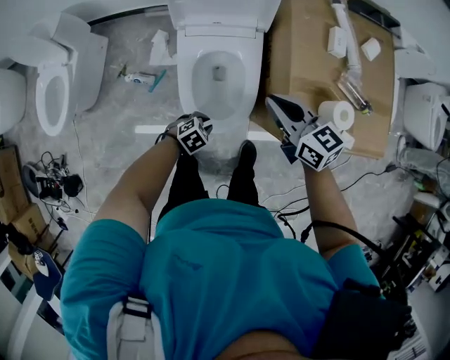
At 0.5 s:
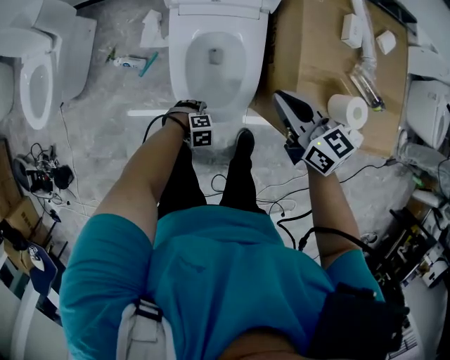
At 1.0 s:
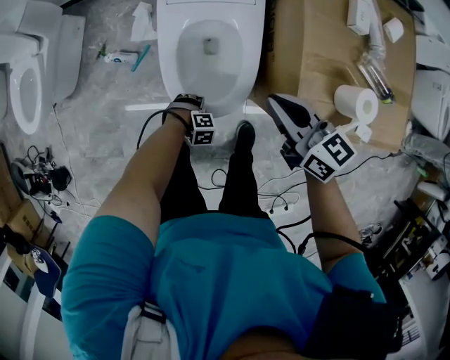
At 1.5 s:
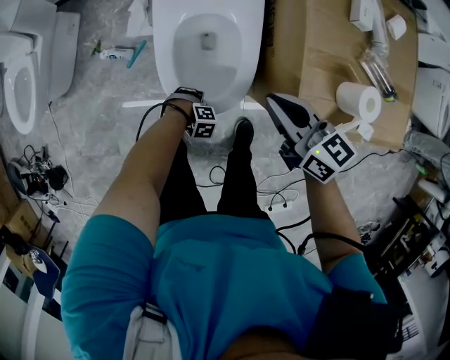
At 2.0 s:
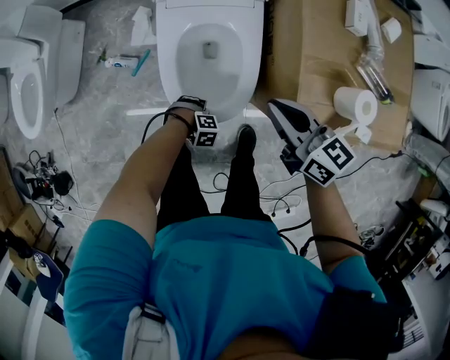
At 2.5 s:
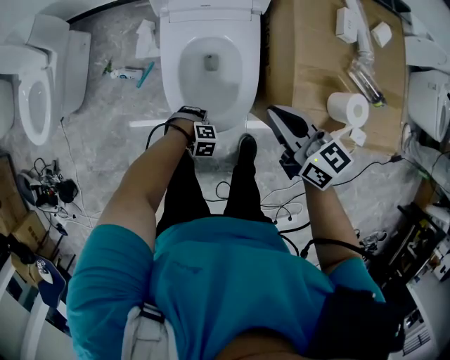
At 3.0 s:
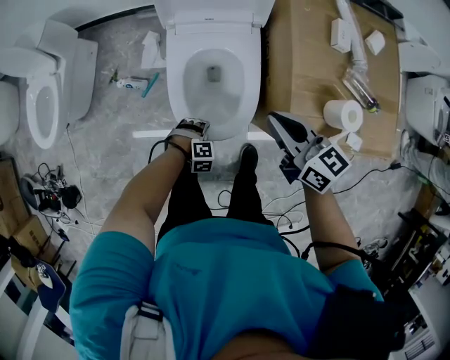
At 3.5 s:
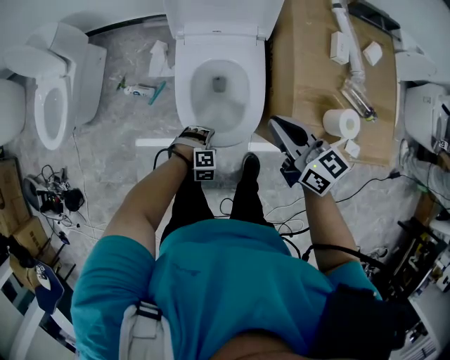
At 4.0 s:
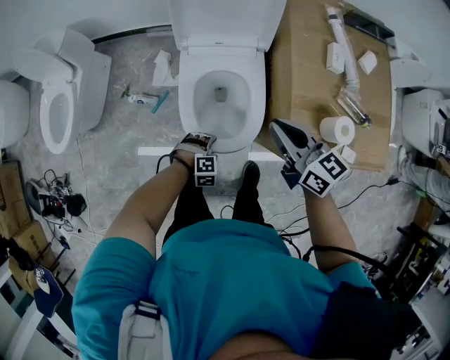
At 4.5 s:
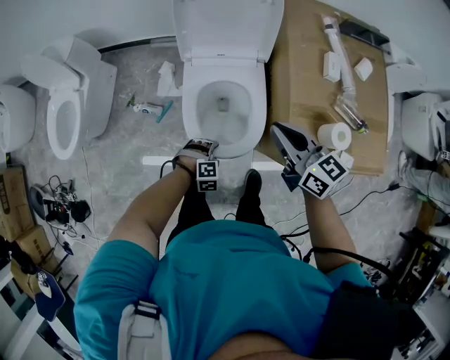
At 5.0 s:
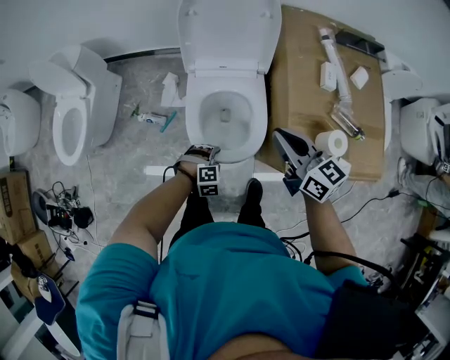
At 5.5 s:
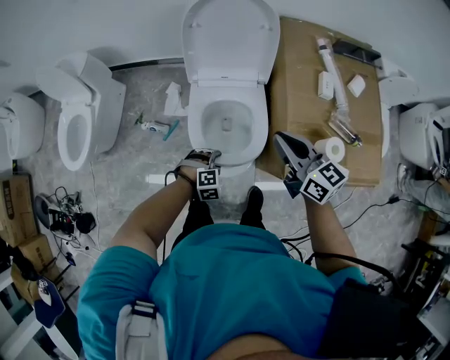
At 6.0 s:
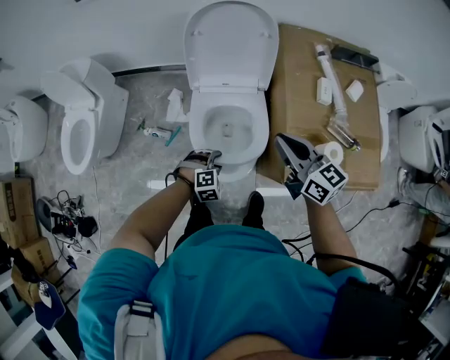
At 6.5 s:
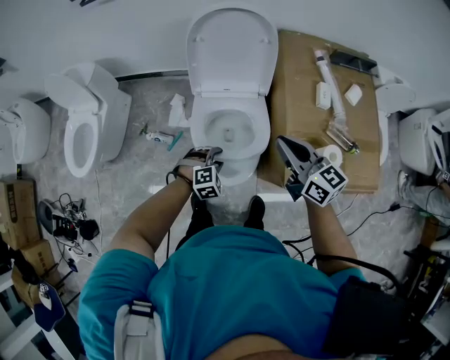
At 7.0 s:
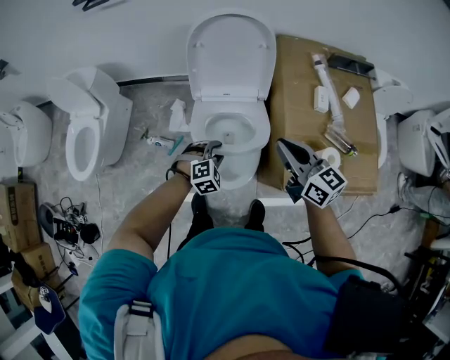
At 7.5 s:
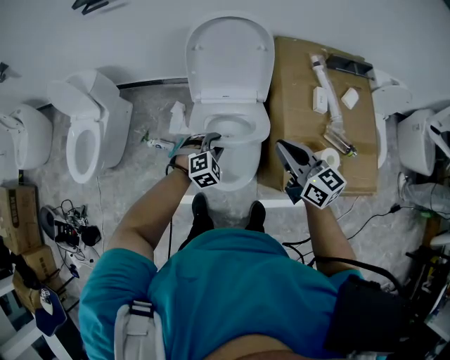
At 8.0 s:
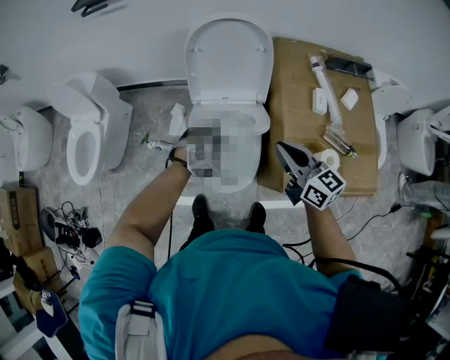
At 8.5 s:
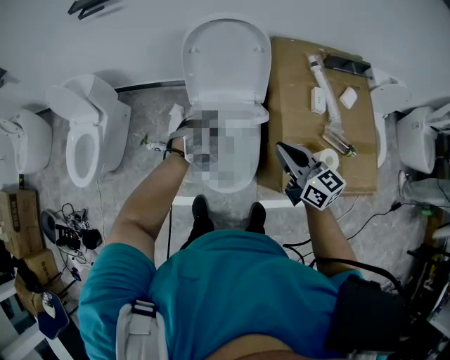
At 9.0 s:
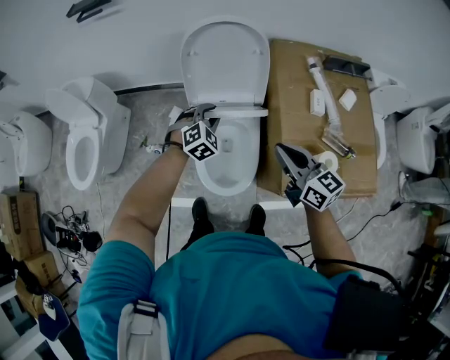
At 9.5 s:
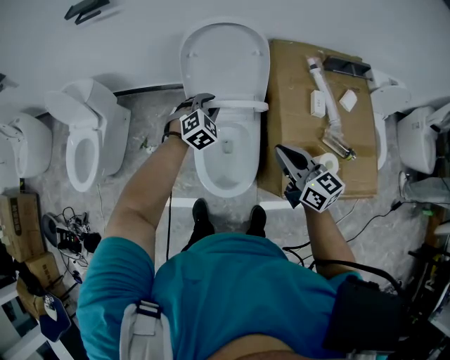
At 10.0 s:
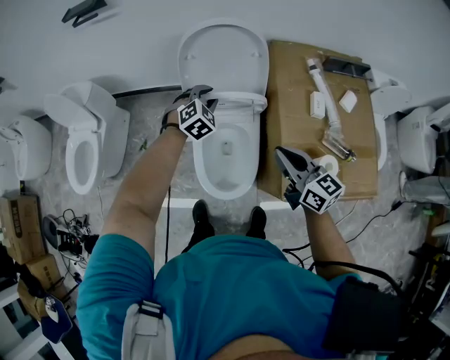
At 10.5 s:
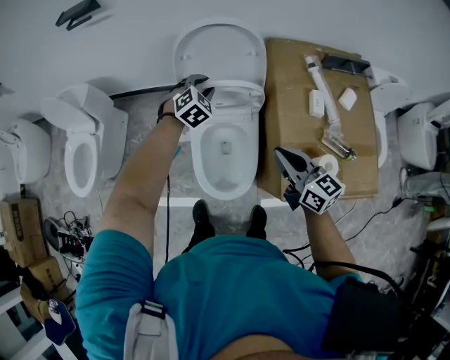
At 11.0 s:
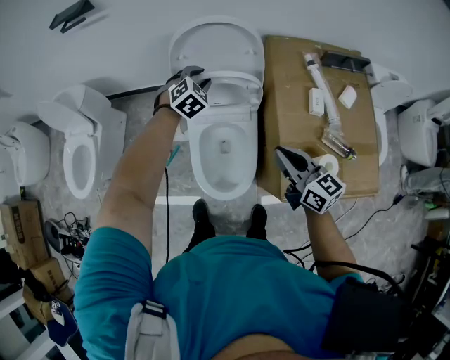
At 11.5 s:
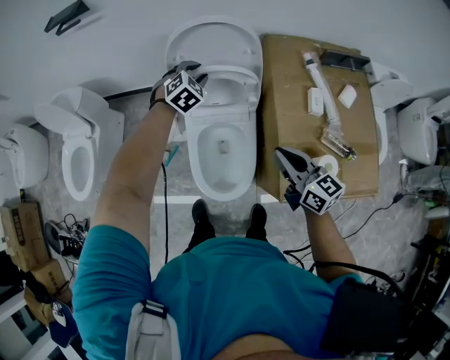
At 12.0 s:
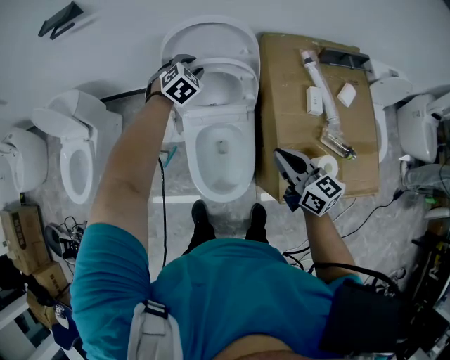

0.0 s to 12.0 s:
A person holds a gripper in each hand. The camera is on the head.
0.0 to 2.0 s: The left gripper travels downward by approximately 15 cm, swivels some 50 degrees, and opens its fingers. The right gripper shifts approximately 10 cm downward.
2.0 to 4.0 s: Both grippers move upward, roughly 10 cm. The left gripper rotates roughly 20 degrees.
4.0 to 6.0 s: The left gripper moves upward and forward, about 15 cm; the right gripper heads upward, covering approximately 10 cm.
6.0 to 8.0 s: The left gripper heads forward and upward, covering roughly 15 cm.
8.0 to 10.0 s: The left gripper travels forward by roughly 15 cm.
10.0 to 12.0 s: The left gripper shifts about 10 cm forward.

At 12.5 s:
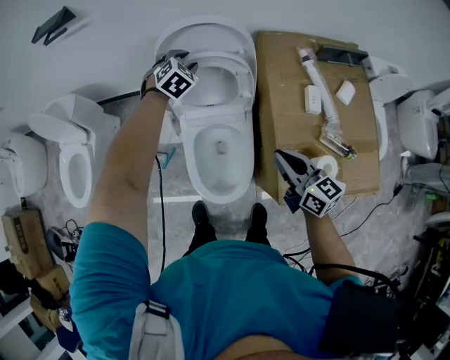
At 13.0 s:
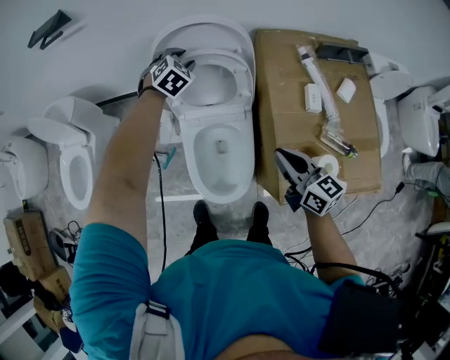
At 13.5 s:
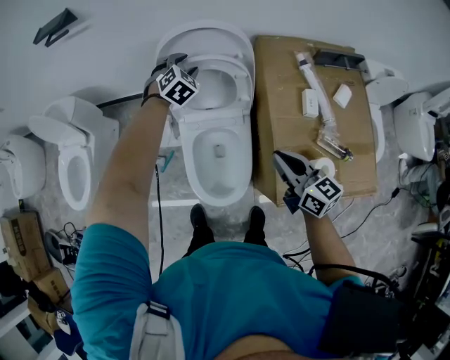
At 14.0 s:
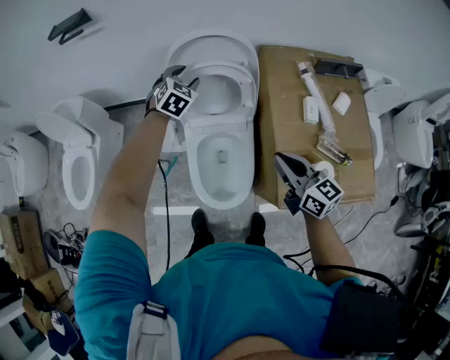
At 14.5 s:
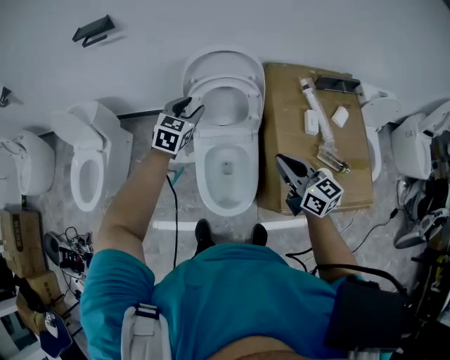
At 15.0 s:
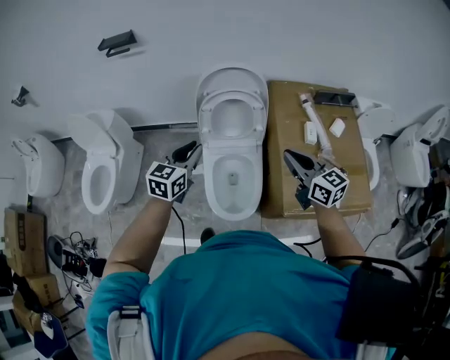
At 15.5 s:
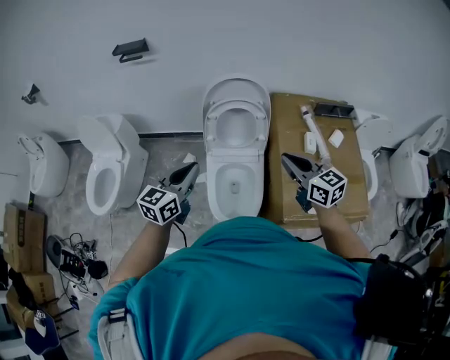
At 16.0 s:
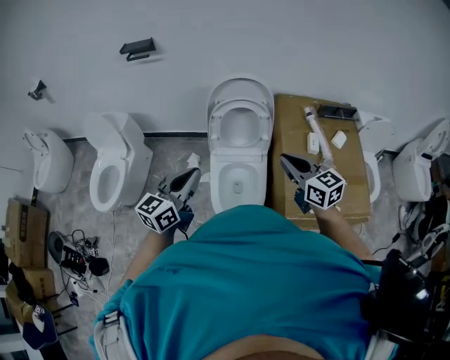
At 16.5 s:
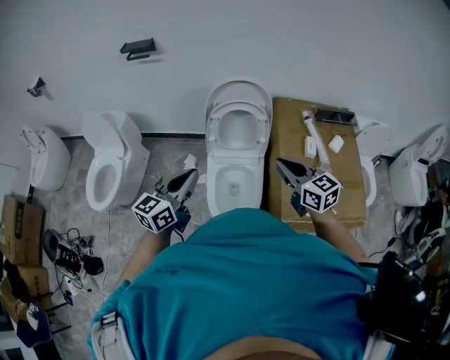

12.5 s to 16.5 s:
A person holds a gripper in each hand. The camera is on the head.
12.5 to 14.5 s: The right gripper heads upward, covering roughly 10 cm. Meanwhile the left gripper moves backward, upward and to the left, roughly 20 cm, and swivels roughly 30 degrees.
14.5 to 16.5 s: The left gripper goes about 30 cm backward and upward, rotates roughly 40 degrees, and closes; the right gripper goes approximately 10 cm upward.

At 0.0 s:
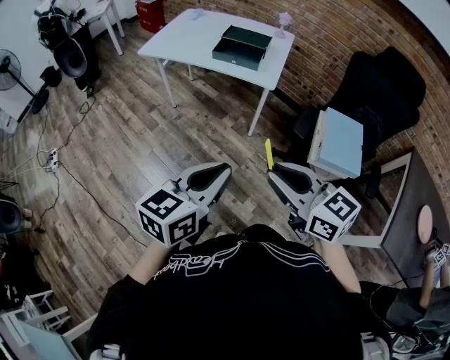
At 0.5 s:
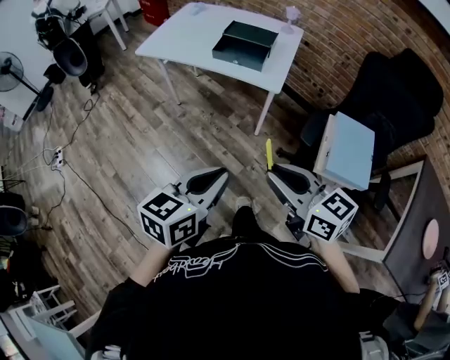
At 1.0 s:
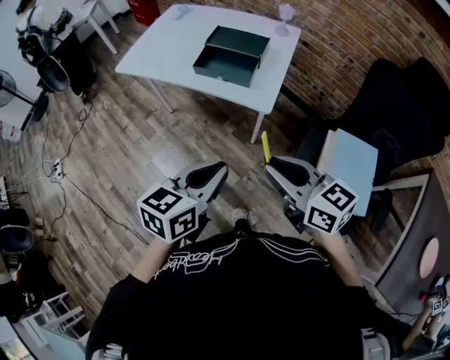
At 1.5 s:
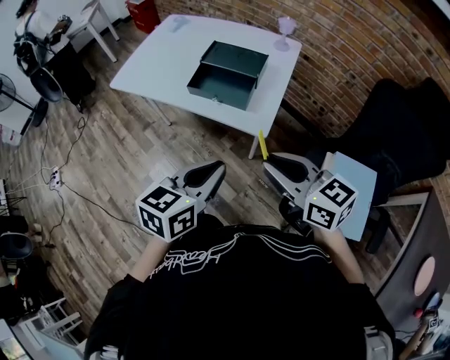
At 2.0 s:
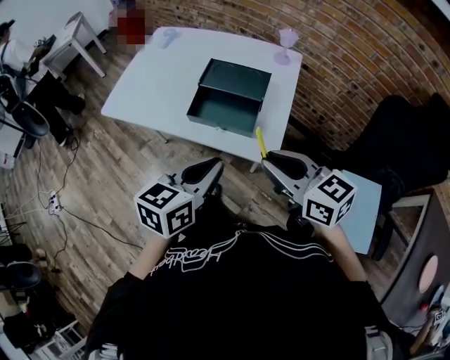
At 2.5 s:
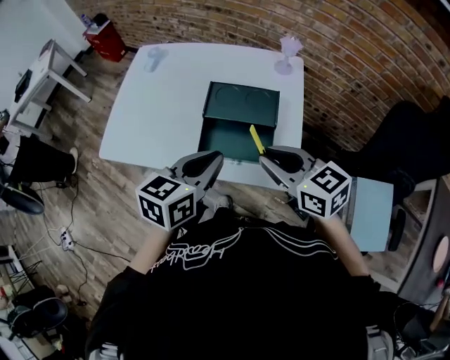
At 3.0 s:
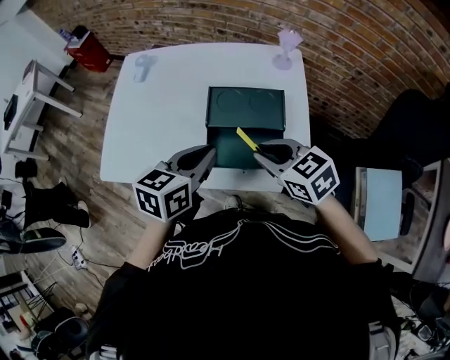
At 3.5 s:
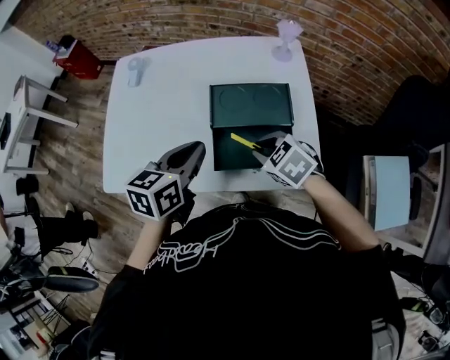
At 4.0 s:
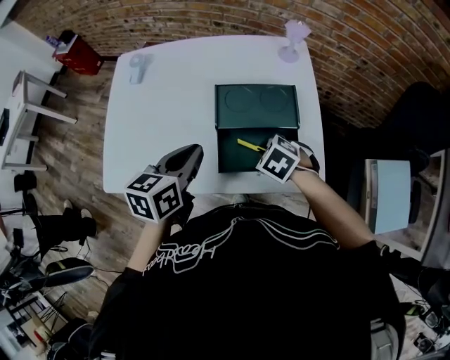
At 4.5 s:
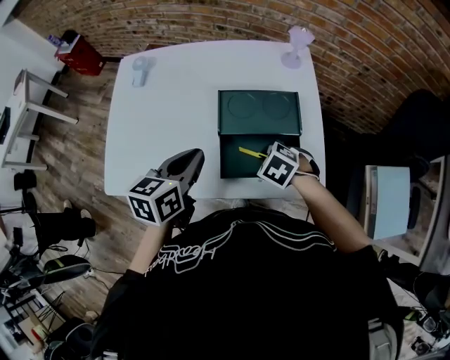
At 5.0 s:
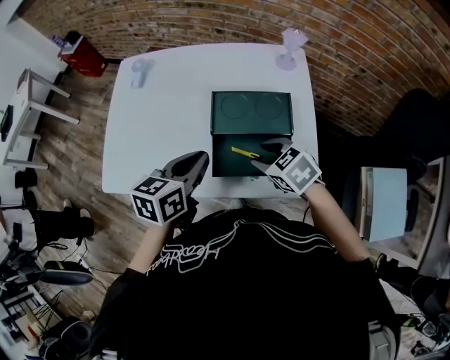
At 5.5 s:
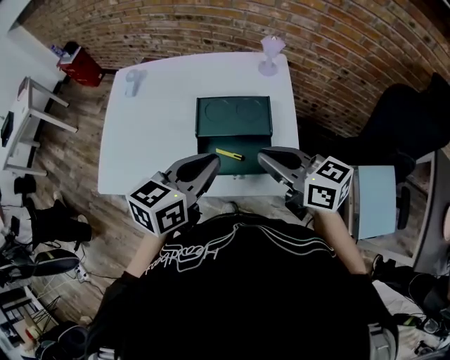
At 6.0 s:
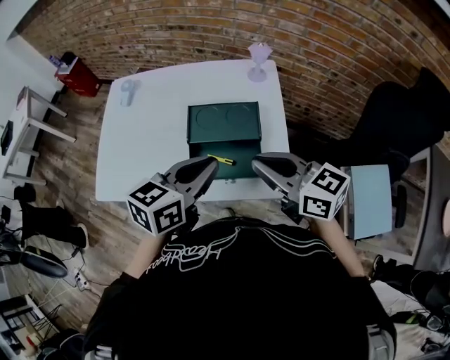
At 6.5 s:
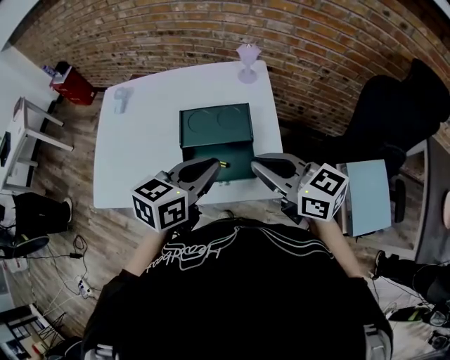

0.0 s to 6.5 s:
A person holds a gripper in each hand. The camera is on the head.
0.0 to 2.0 s: The two grippers travel together, forward, approximately 40 cm.
2.0 to 4.5 s: The right gripper goes some 35 cm downward, forward and to the left, and tips its fingers downward by some 60 degrees. Meanwhile the left gripper travels forward and to the left by some 30 cm.
4.5 to 6.5 s: The left gripper moves to the right and upward, some 20 cm. The right gripper moves upward, approximately 25 cm, tips its fingers upward by approximately 60 degrees, and opens, then closes once more.

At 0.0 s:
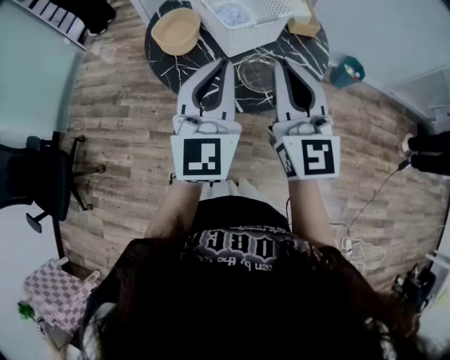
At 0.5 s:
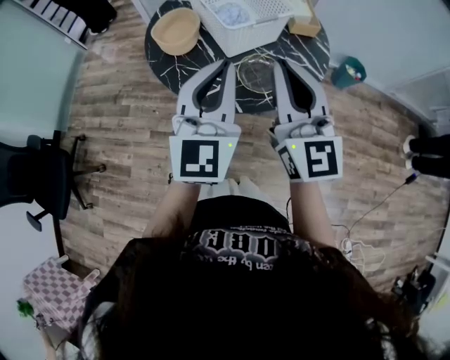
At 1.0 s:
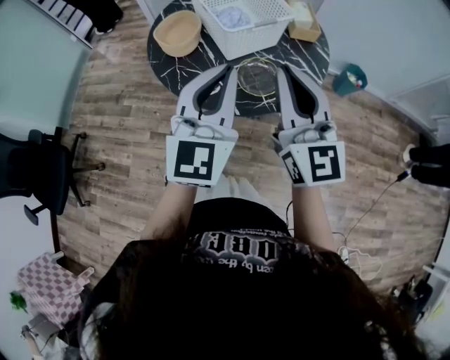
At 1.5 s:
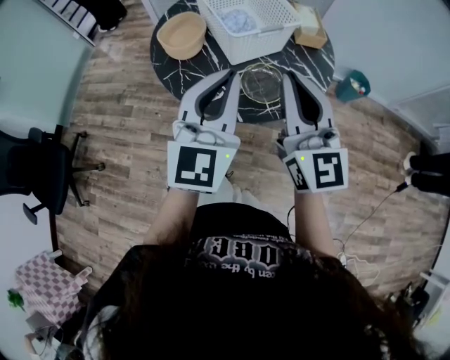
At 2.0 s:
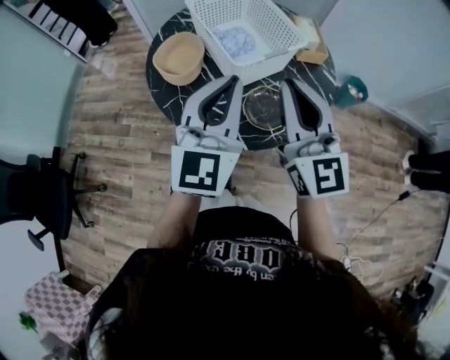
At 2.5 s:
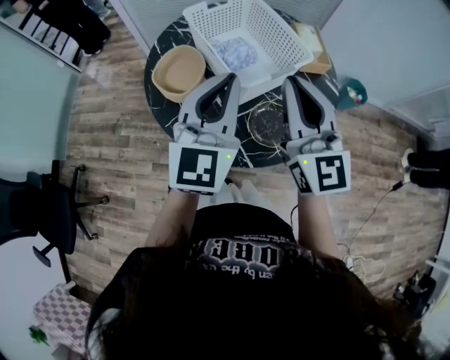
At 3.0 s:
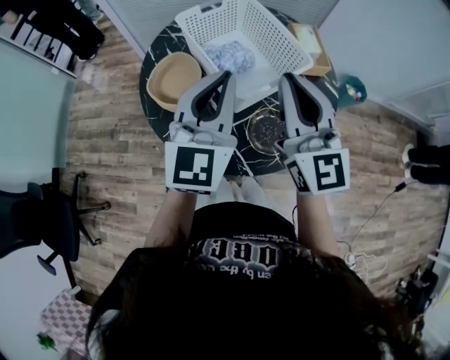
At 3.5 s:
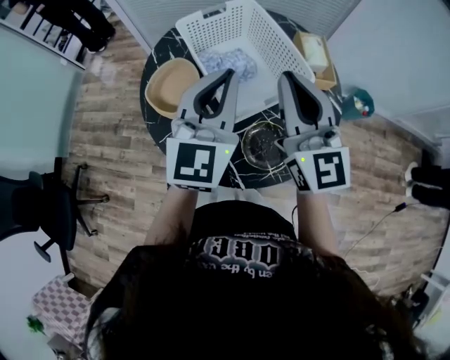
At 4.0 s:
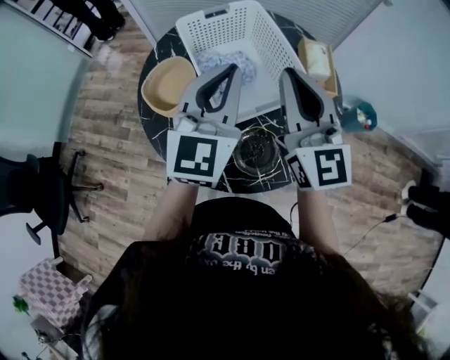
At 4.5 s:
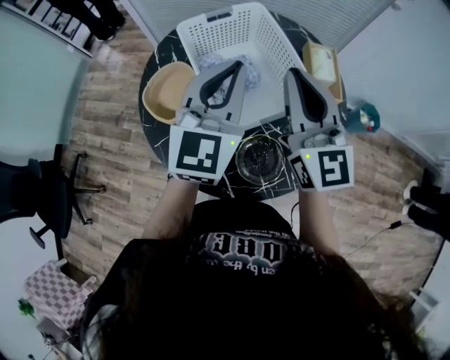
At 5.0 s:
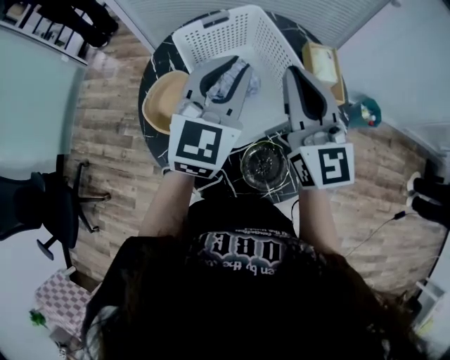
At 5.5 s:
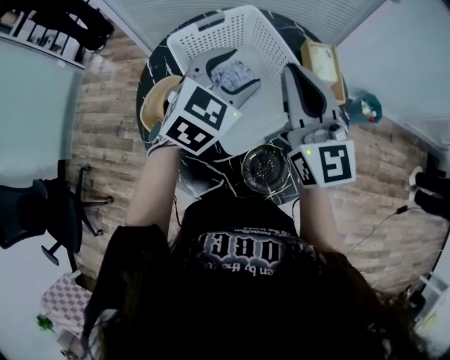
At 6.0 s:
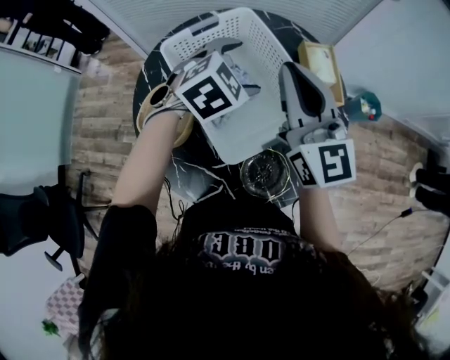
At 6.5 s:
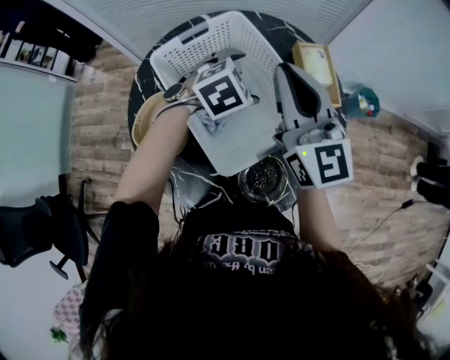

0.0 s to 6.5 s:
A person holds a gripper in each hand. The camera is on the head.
0.0 to 2.0 s: Both grippers move forward, approximately 5 cm.
2.0 to 4.5 s: The grippers both shift forward by approximately 20 cm.
4.5 to 6.5 s: The right gripper shifts some 10 cm forward; the left gripper heads downward and forward, covering roughly 25 cm, angles its fingers downward, by approximately 50 degrees, and opens its fingers.
